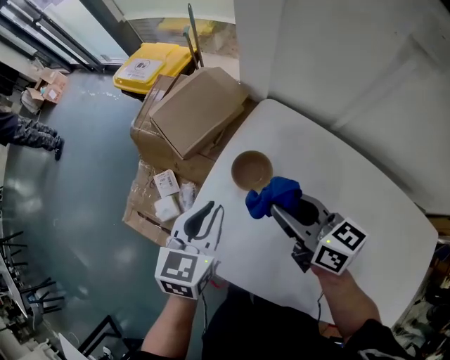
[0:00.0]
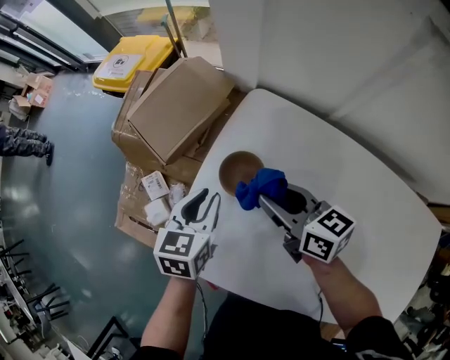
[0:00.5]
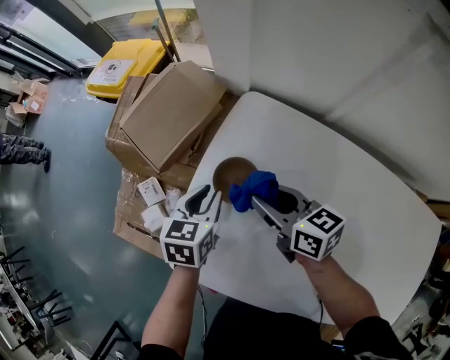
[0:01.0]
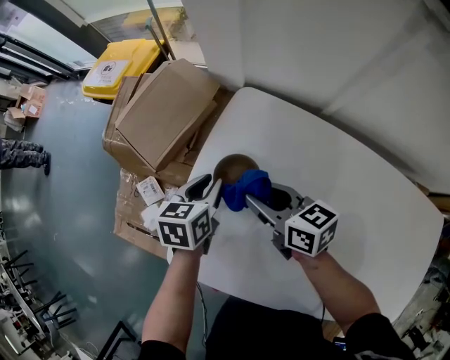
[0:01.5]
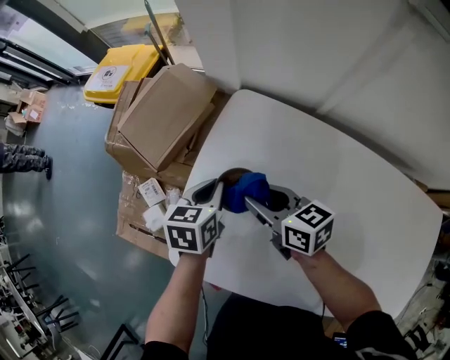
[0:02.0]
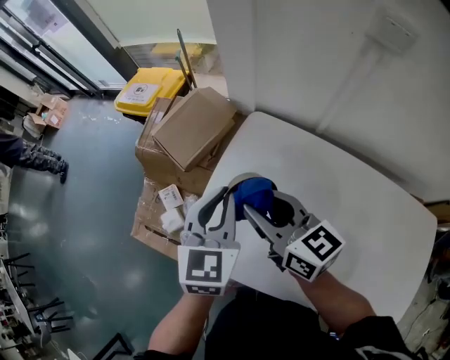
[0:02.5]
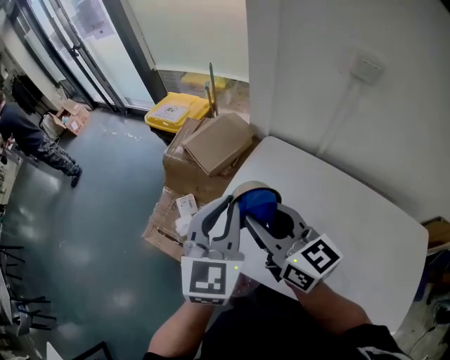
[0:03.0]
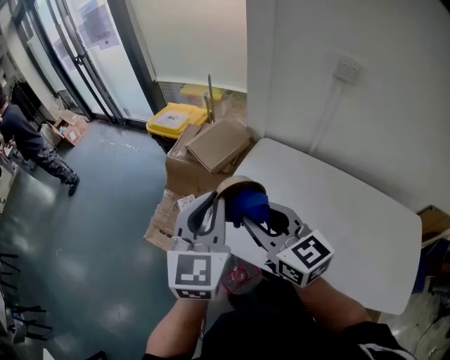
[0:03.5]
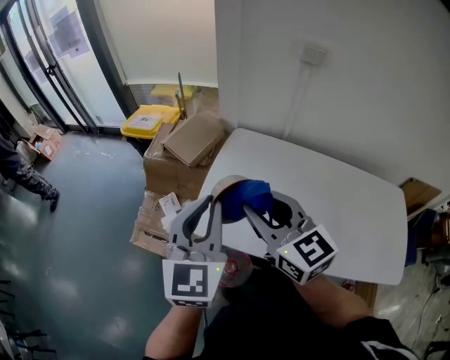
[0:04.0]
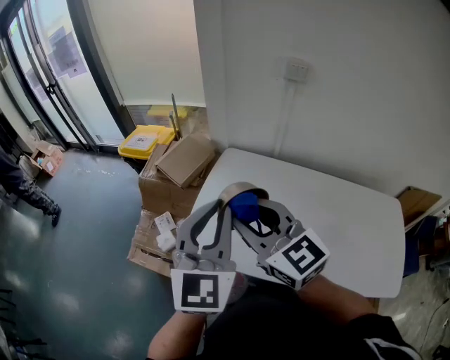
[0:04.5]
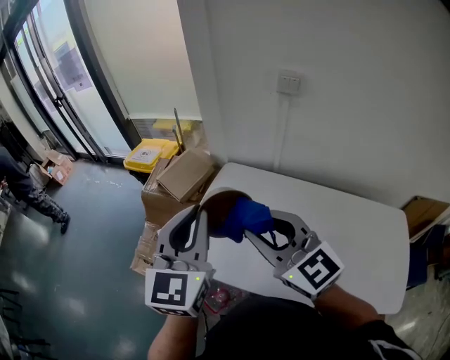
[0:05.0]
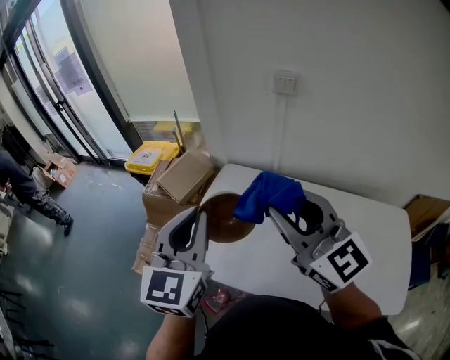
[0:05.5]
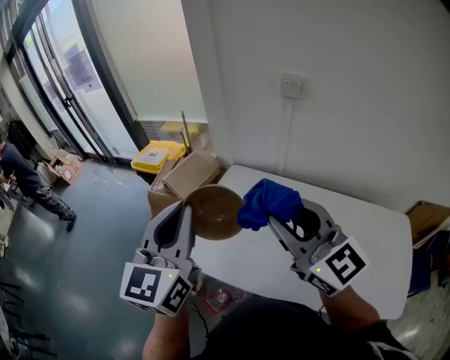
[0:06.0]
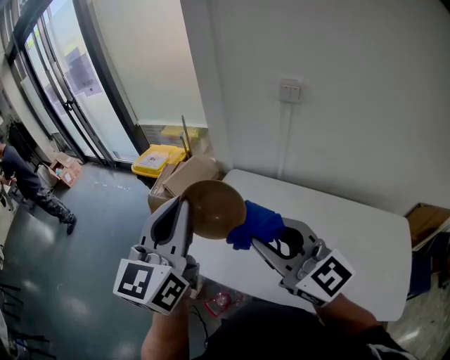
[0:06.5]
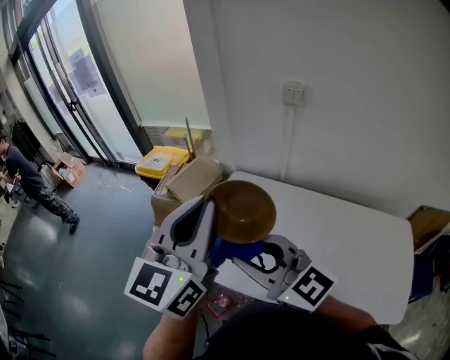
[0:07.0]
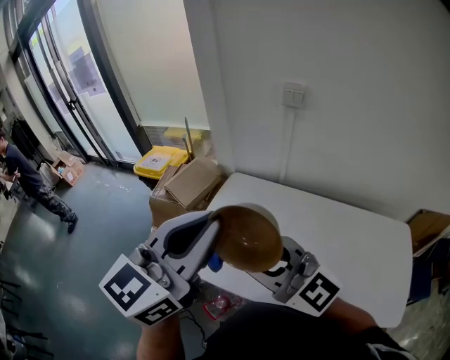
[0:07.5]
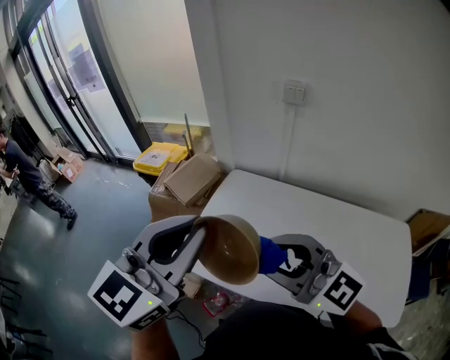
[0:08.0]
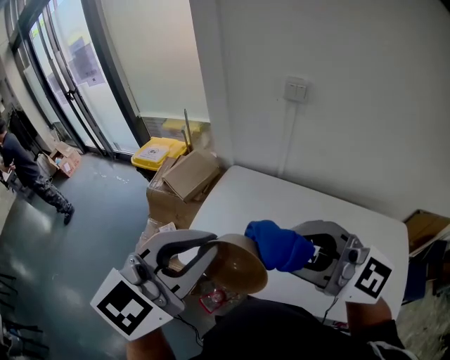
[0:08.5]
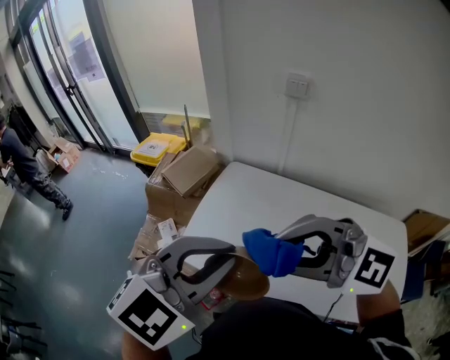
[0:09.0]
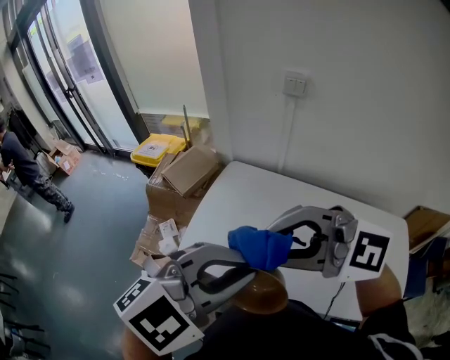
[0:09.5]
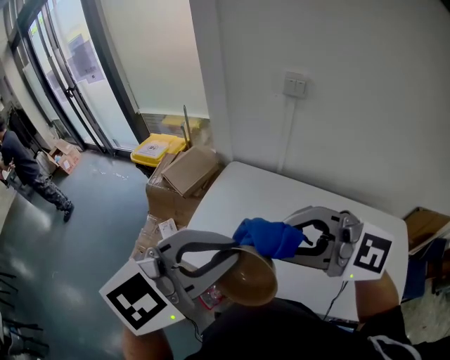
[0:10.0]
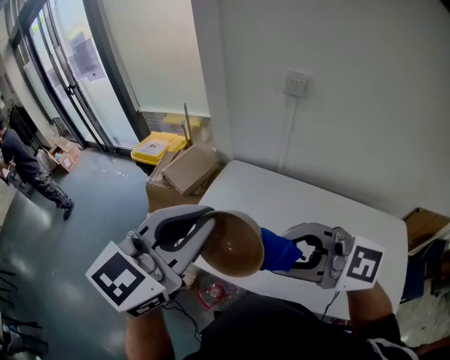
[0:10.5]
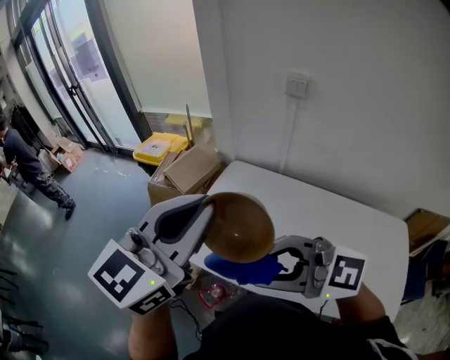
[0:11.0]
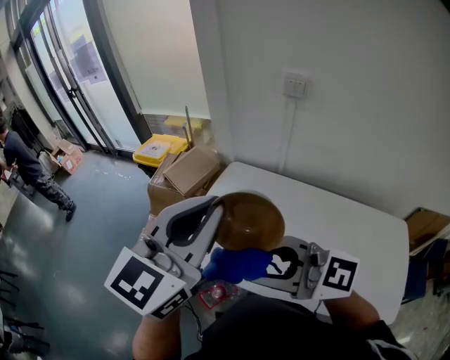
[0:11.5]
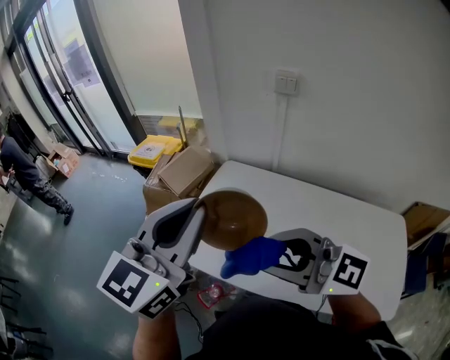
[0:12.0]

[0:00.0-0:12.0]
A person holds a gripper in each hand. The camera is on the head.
0:00.0 to 0:02.0: The right gripper is displaced downward by roughly 10 cm, while the left gripper travels downward, forward and to the right by some 15 cm.
0:02.0 to 0:04.0: The right gripper travels upward, backward and to the left by about 40 cm, and turns by approximately 40 degrees; the left gripper heads upward and backward, covering approximately 50 cm, and tips its fingers upward by roughly 40 degrees.
0:04.0 to 0:06.0: The left gripper shifts about 10 cm upward and to the right. Meanwhile the right gripper shifts approximately 20 cm to the right and upward.
0:06.0 to 0:08.0: Both grippers move backward, roughly 5 cm. The right gripper swivels about 20 degrees. The left gripper changes its angle by approximately 20 degrees.
0:08.0 to 0:10.0: The left gripper shifts by roughly 10 cm, and changes its angle by some 30 degrees, while the right gripper rotates about 30 degrees.
0:10.0 to 0:12.0: The right gripper turns by approximately 20 degrees. The left gripper changes place by about 10 cm, and turns by approximately 40 degrees.

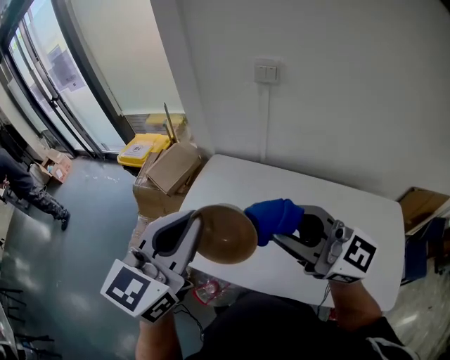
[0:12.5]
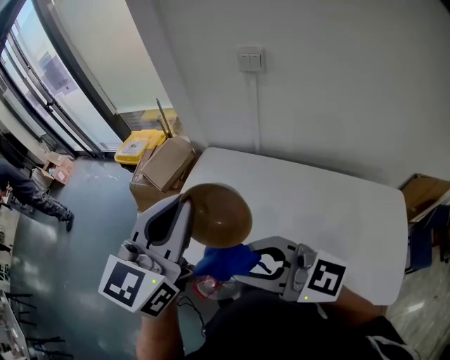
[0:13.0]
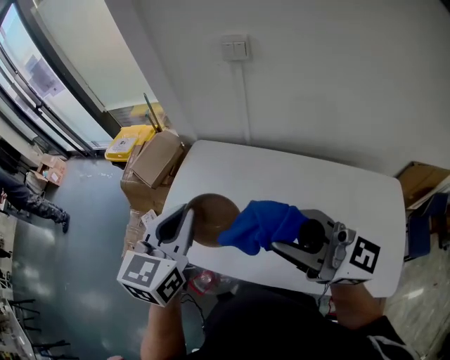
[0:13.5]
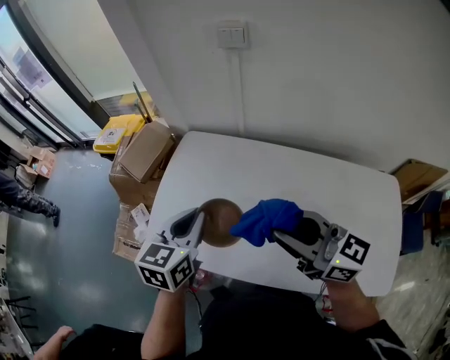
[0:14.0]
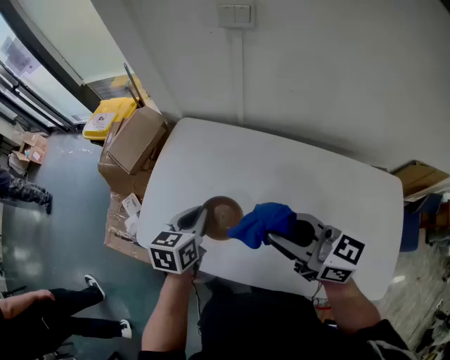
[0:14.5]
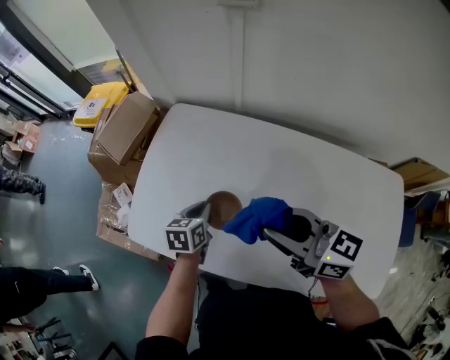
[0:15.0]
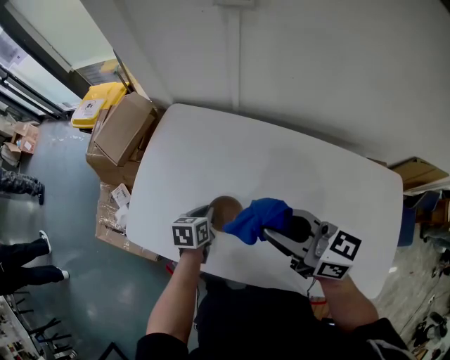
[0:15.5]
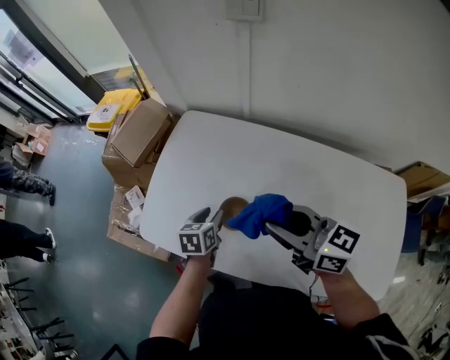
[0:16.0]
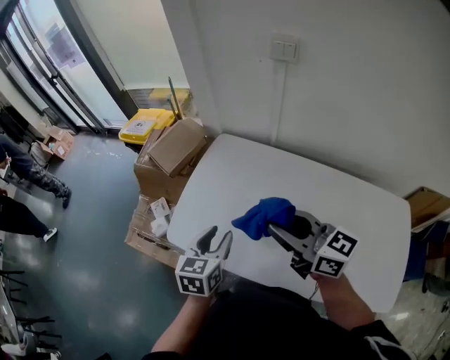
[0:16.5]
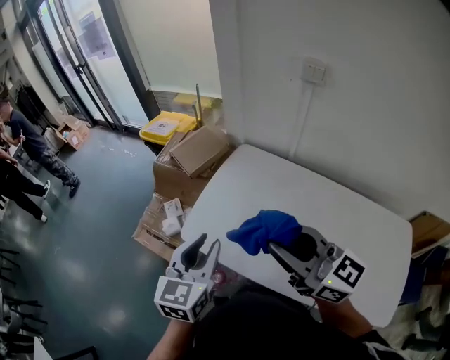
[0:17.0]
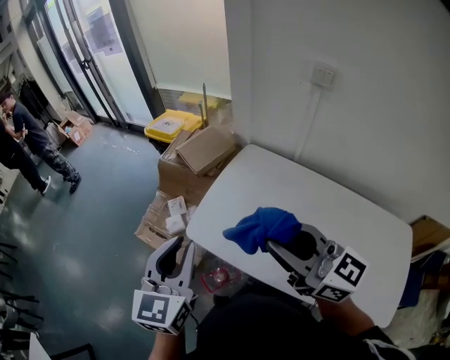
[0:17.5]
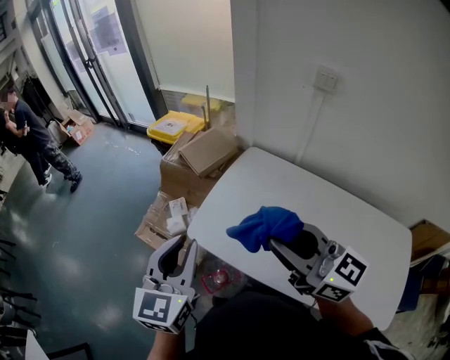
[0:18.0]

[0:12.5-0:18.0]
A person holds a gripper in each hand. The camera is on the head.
0:12.5 to 0:14.5: The left gripper travels downward by roughly 30 cm, and angles its fingers downward, by roughly 30 degrees; the right gripper is displaced downward and to the right by about 20 cm, and turns by roughly 30 degrees.
0:14.5 to 0:16.0: The left gripper travels downward by roughly 10 cm, and opens up.
0:16.0 to 0:18.0: The left gripper moves upward and to the left, some 40 cm, tilts its fingers approximately 40 degrees upward, and closes; the right gripper goes some 25 cm to the left and upward, and rotates some 20 degrees.

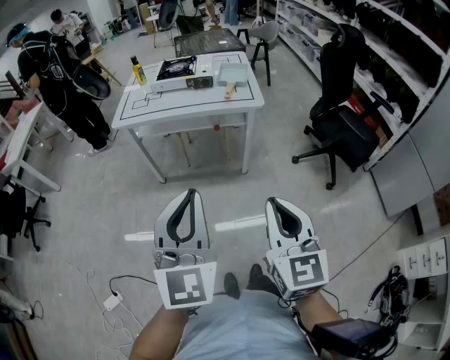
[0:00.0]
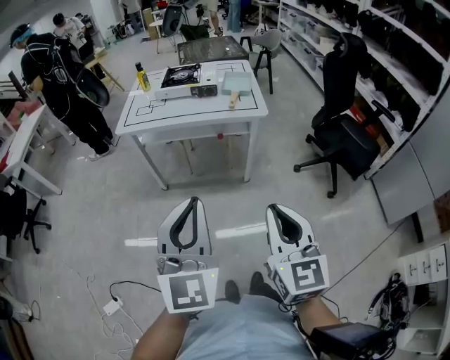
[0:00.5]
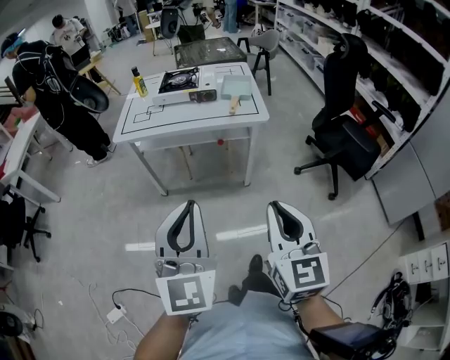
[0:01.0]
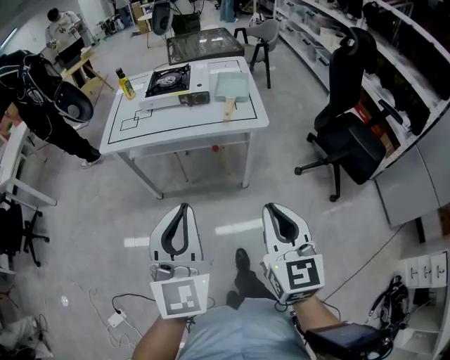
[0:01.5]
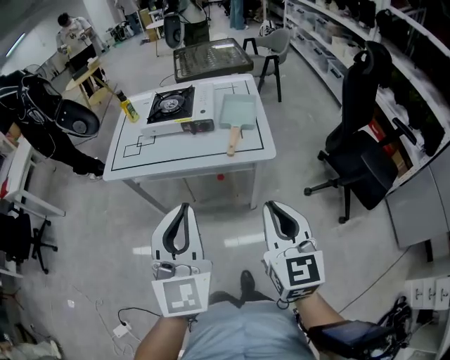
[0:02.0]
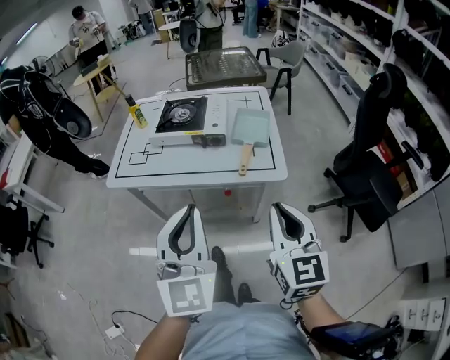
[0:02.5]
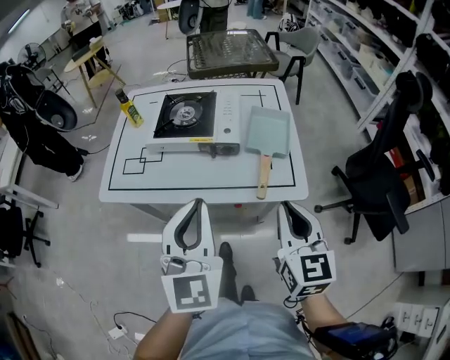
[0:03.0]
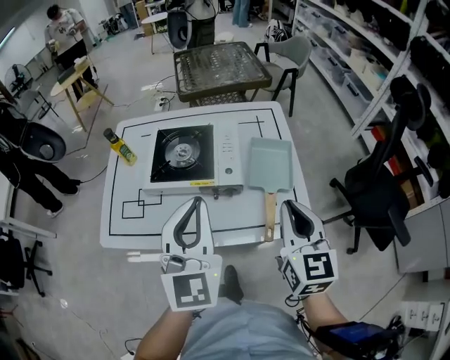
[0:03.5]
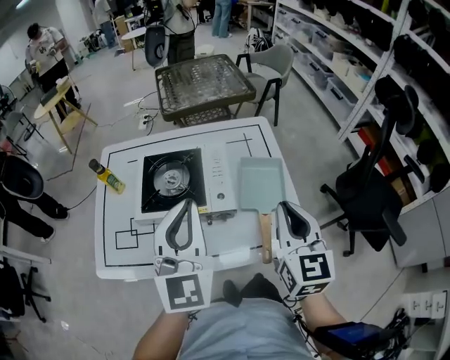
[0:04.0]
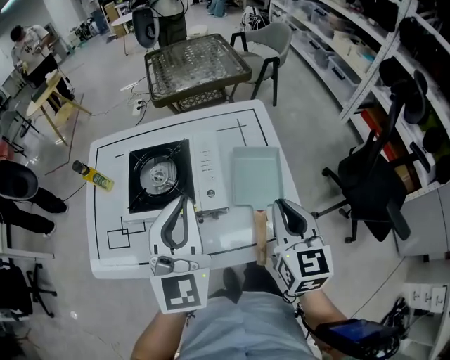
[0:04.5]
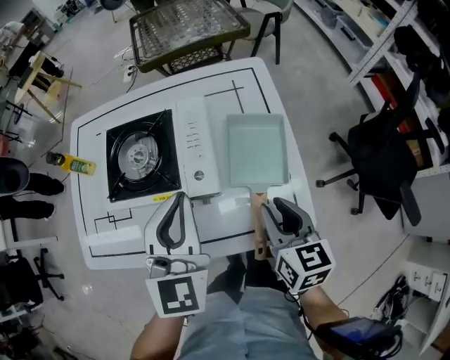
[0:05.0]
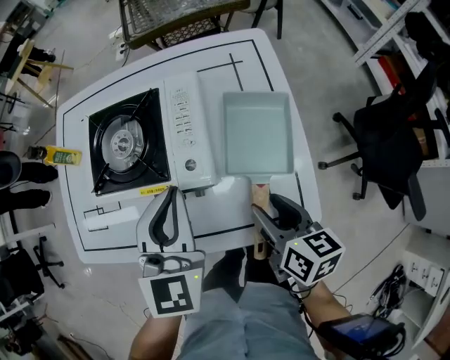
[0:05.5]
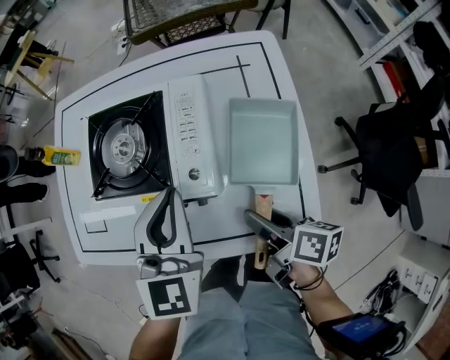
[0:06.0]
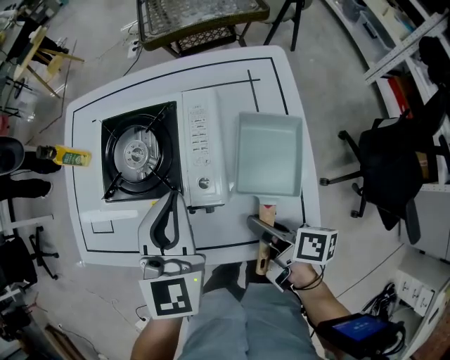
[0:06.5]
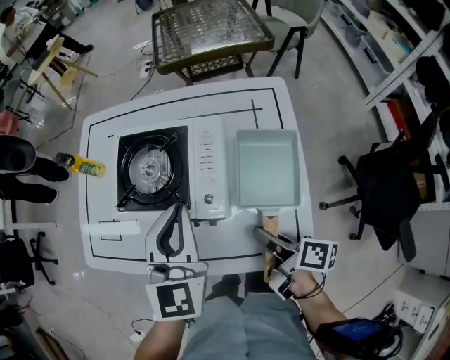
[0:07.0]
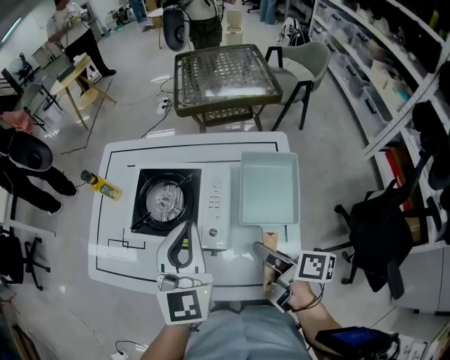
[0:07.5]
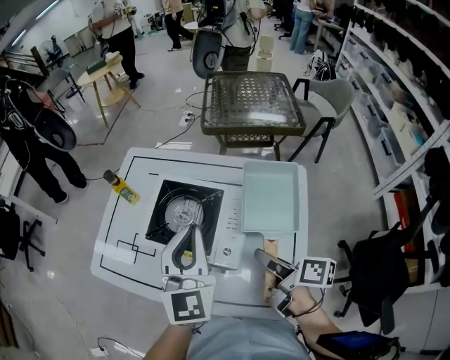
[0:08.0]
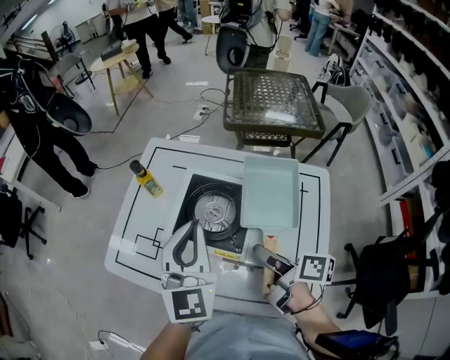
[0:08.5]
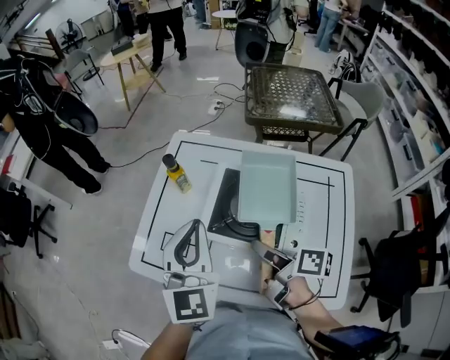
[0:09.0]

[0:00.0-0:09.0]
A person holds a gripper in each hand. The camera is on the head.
0:00.0 to 0:02.0: The grippers both shift forward by some 30 cm.
0:02.0 to 0:04.5: The pair of grippers is taken forward, about 50 cm.
0:04.5 to 0:07.0: The right gripper shifts roughly 15 cm downward, twists roughly 60 degrees clockwise, seen from behind, and opens and closes again. The left gripper shifts some 10 cm downward and forward.
0:07.0 to 0:09.0: Both grippers move to the left, forward and upward, about 25 cm.
